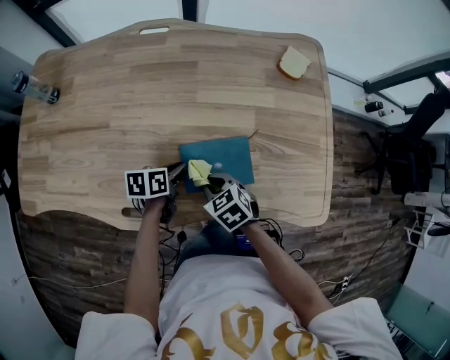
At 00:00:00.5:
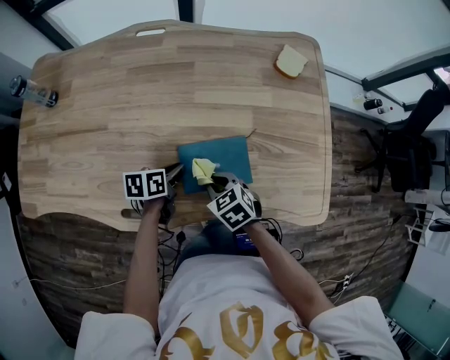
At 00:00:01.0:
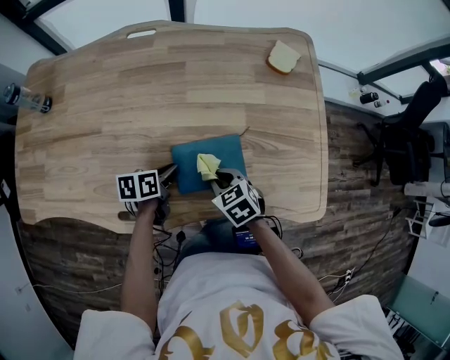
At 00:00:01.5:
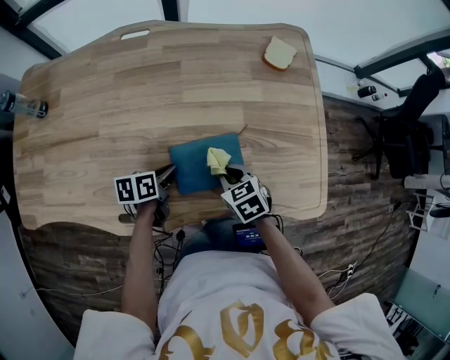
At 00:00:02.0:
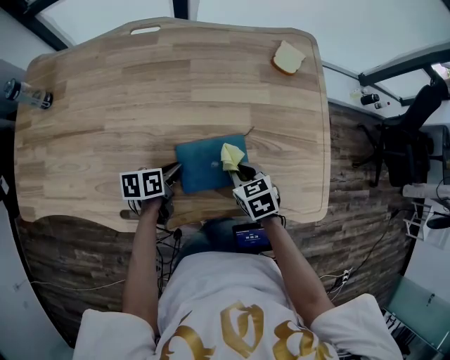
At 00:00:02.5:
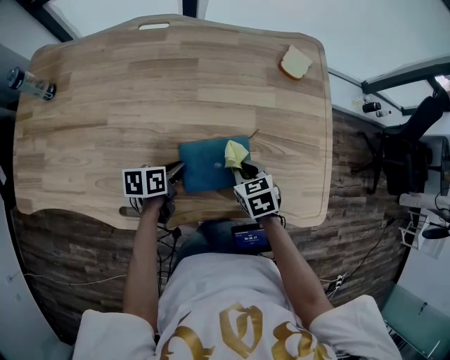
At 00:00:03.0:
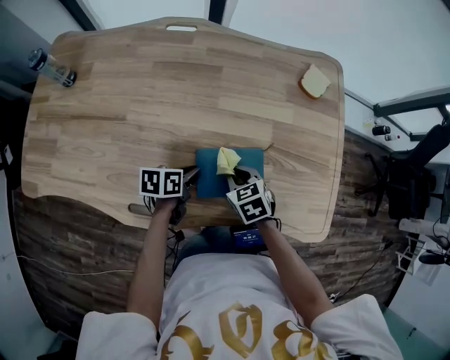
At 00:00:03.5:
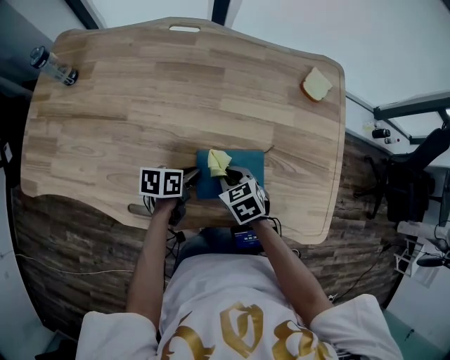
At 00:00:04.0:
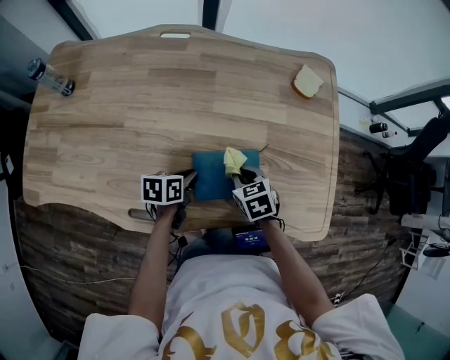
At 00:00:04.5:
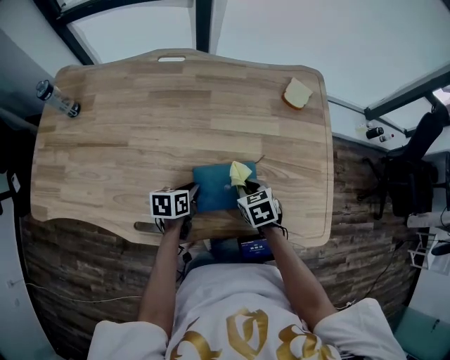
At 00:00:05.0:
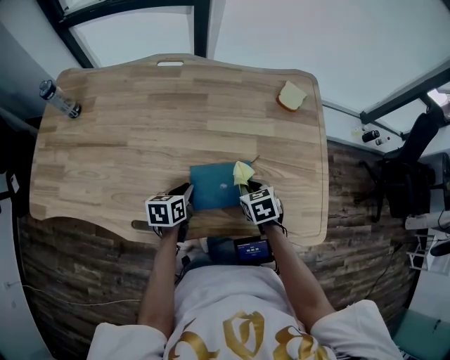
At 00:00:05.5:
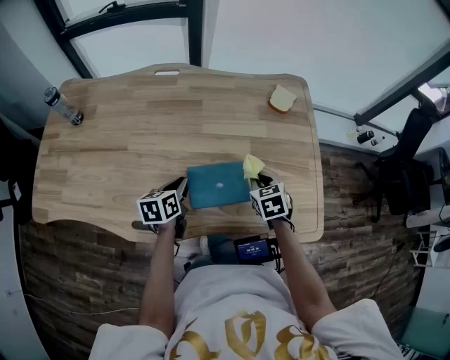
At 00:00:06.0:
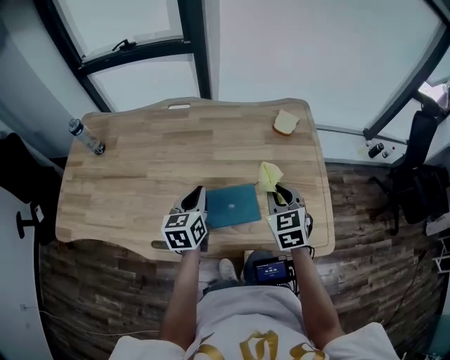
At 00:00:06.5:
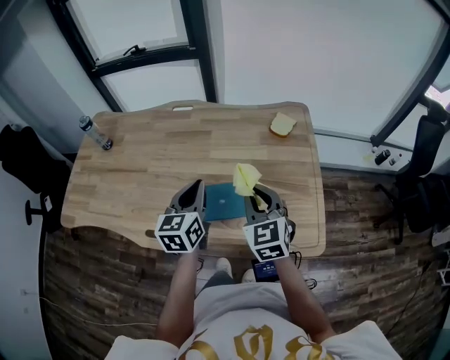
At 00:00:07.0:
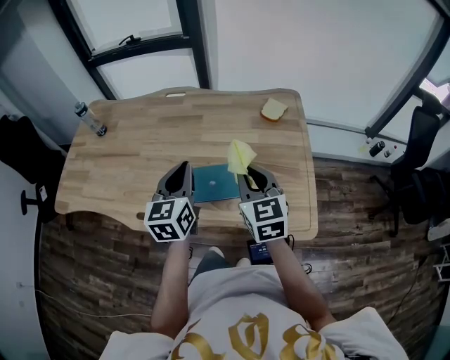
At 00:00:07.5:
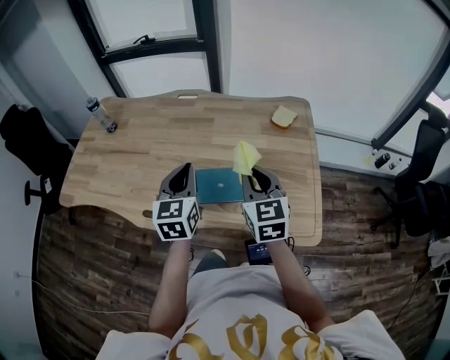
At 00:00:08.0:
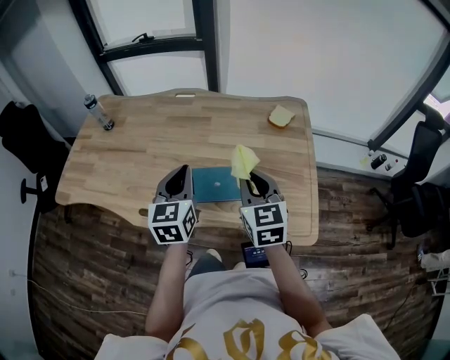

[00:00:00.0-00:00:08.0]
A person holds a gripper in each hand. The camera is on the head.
00:00:00.0 to 00:00:02.0: The right gripper travels to the right by about 10 cm.
00:00:04.0 to 00:00:06.0: The right gripper shifts approximately 20 cm upward and to the right, and rotates about 30 degrees, while the left gripper shifts approximately 20 cm upward, and swivels about 40 degrees.
00:00:06.0 to 00:00:08.0: The grippers both shift upward and backward by approximately 15 cm.

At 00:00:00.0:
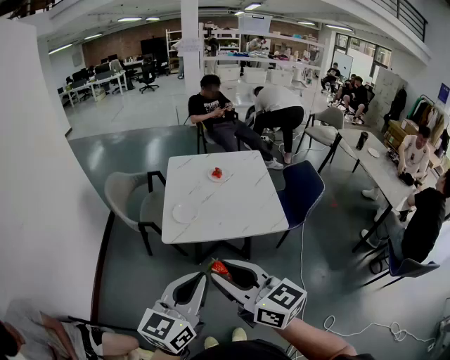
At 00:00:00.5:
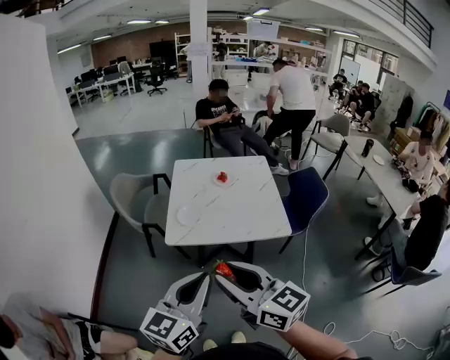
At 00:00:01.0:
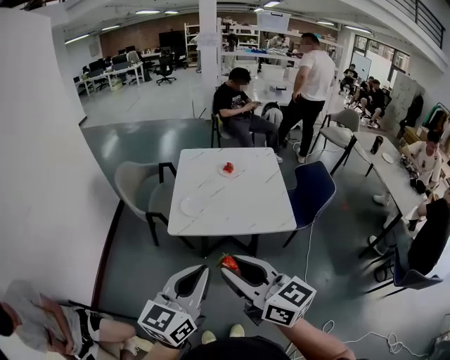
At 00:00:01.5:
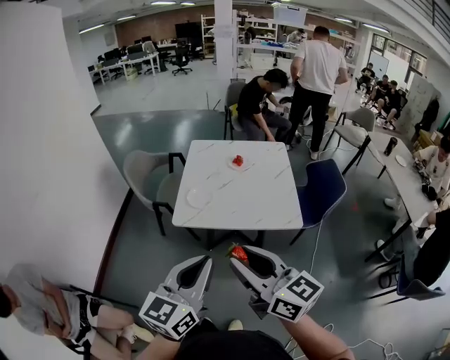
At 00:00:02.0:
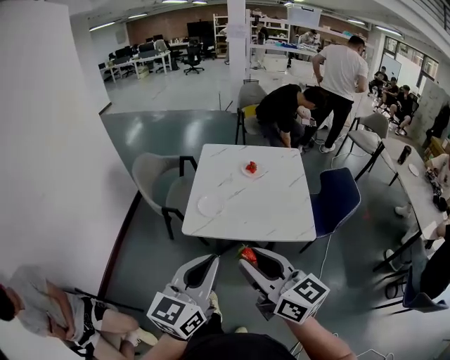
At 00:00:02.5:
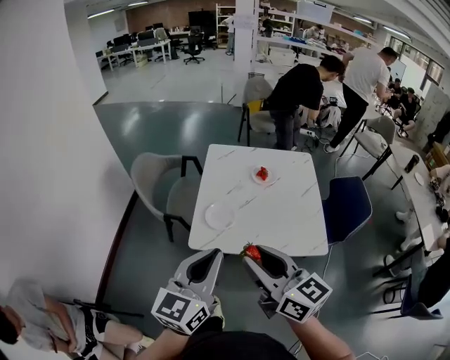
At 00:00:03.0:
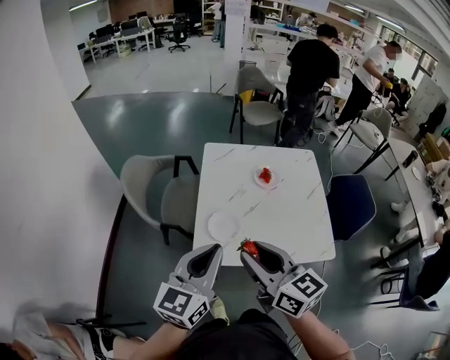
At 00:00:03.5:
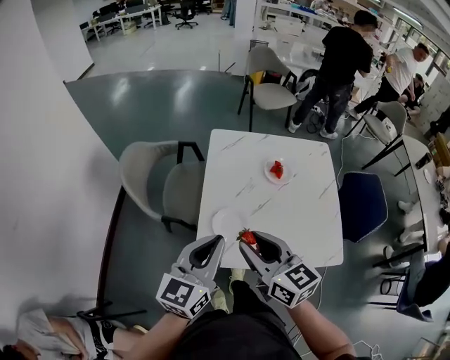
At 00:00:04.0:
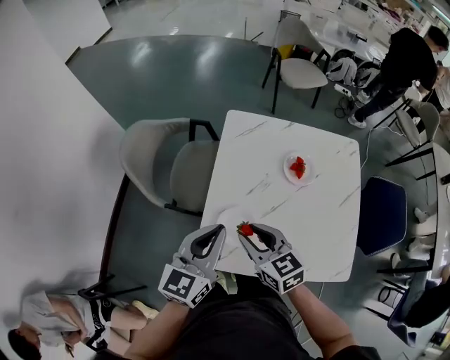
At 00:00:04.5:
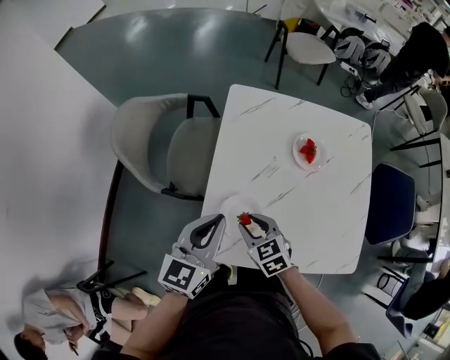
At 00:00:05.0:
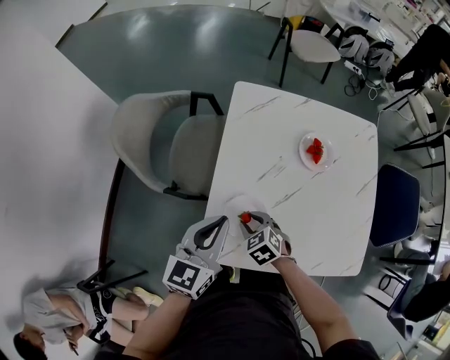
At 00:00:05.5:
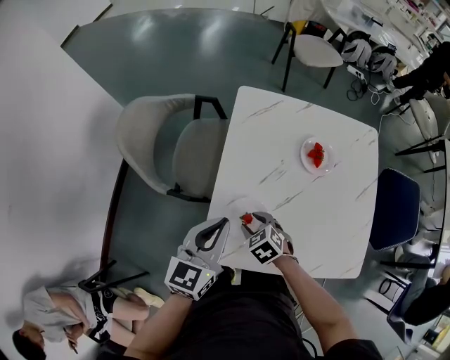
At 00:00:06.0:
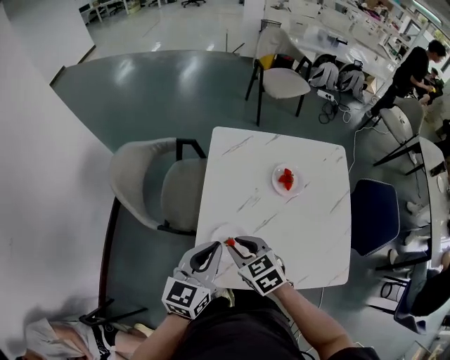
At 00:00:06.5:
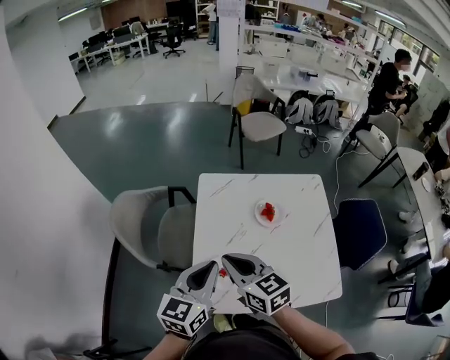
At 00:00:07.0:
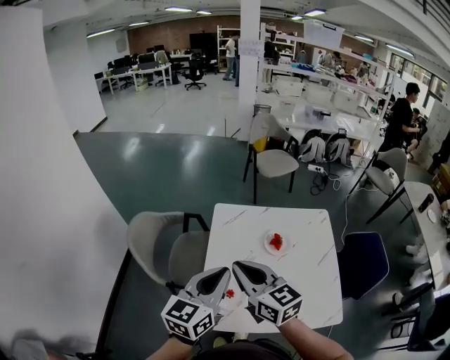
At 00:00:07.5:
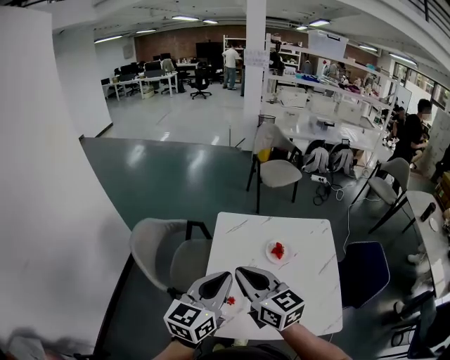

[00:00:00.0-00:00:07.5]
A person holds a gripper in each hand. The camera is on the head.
00:00:00.0 to 00:00:02.0: The right gripper heads forward and to the right, covering about 10 cm, while the left gripper travels forward by roughly 5 cm.
00:00:02.0 to 00:00:04.0: The two grippers travel together, forward, some 40 cm. The right gripper heads downward, covering roughly 25 cm, and tips its fingers downward by about 30 degrees.
00:00:04.0 to 00:00:05.5: The right gripper moves downward, approximately 20 cm, and points its fingers some 30 degrees further downward, while the left gripper moves downward, about 10 cm.
00:00:05.5 to 00:00:07.5: The left gripper shifts roughly 20 cm upward, while the right gripper moves upward, approximately 40 cm, angles its fingers upward, by approximately 50 degrees, and closes up.

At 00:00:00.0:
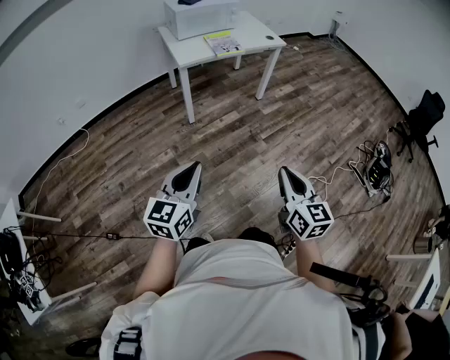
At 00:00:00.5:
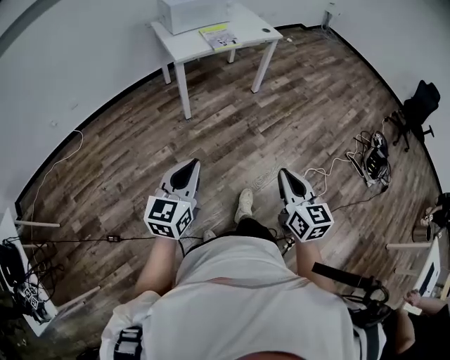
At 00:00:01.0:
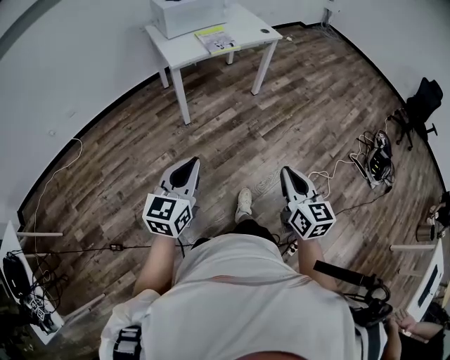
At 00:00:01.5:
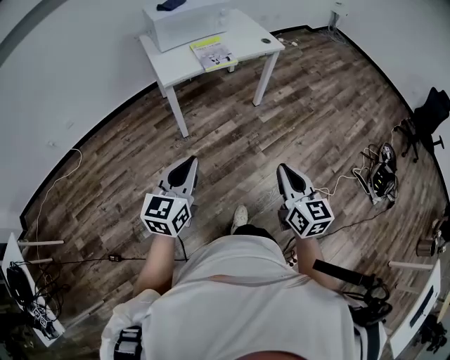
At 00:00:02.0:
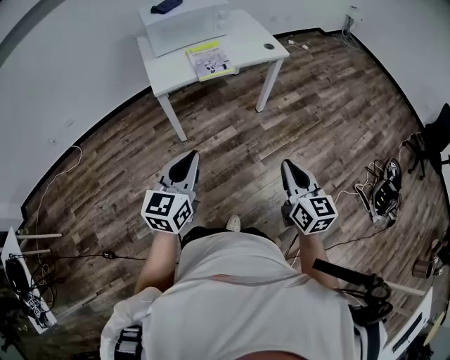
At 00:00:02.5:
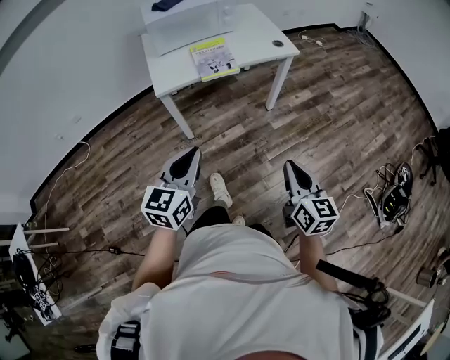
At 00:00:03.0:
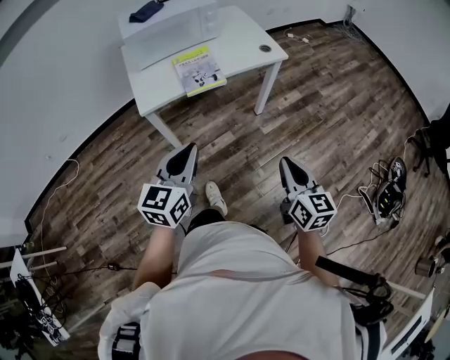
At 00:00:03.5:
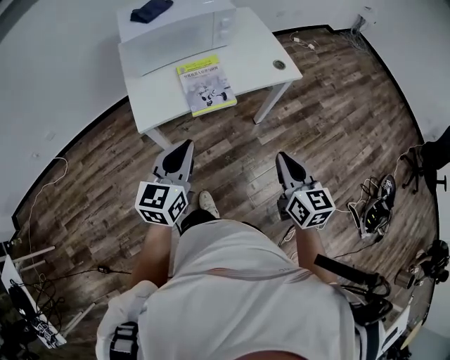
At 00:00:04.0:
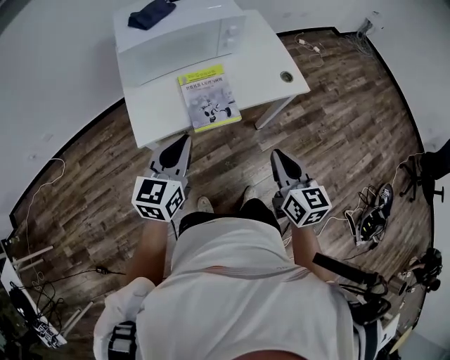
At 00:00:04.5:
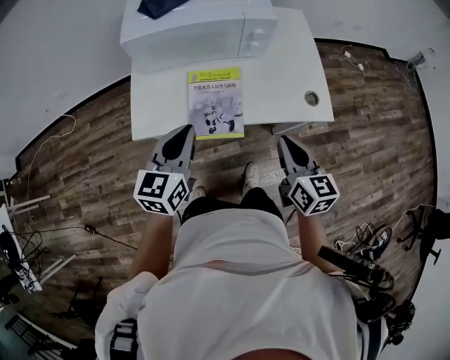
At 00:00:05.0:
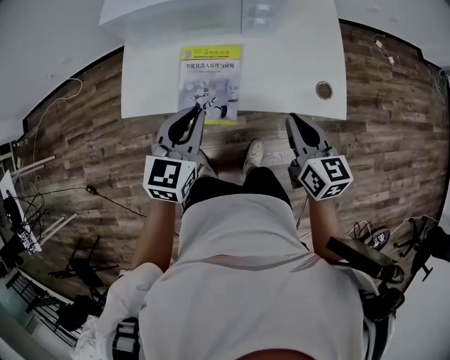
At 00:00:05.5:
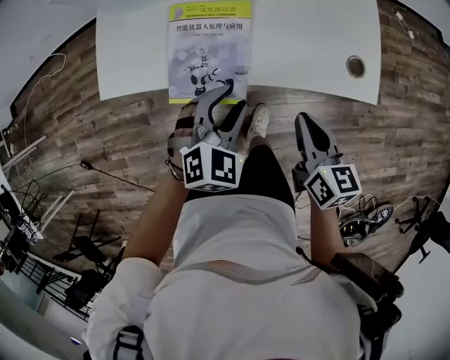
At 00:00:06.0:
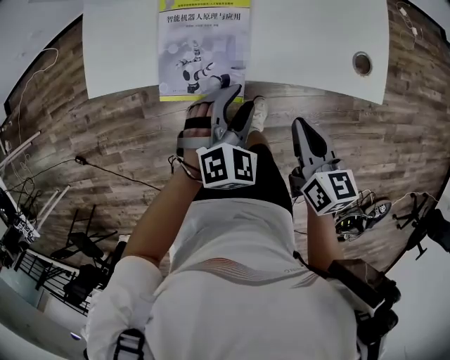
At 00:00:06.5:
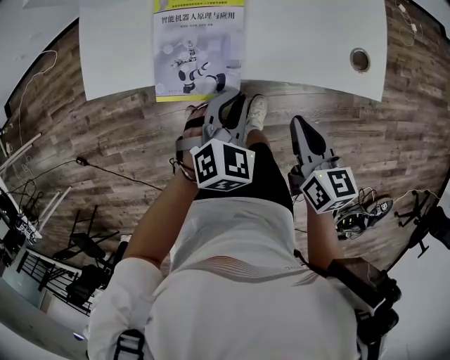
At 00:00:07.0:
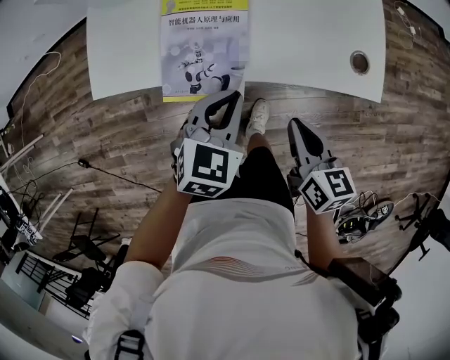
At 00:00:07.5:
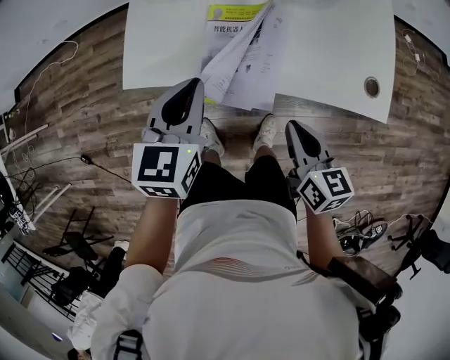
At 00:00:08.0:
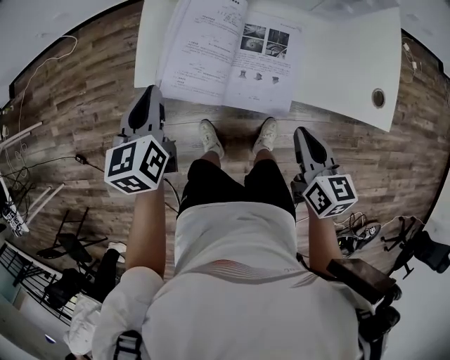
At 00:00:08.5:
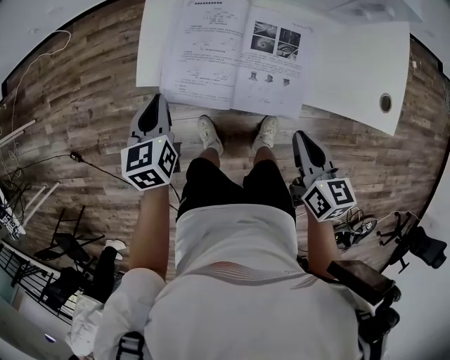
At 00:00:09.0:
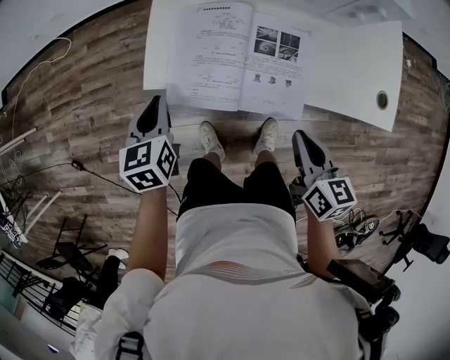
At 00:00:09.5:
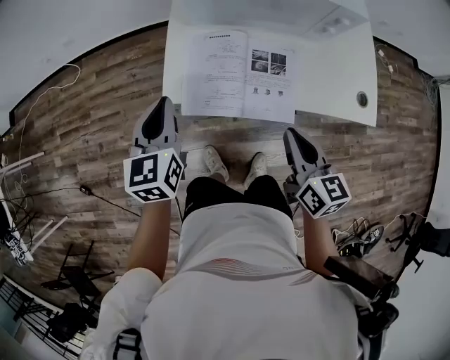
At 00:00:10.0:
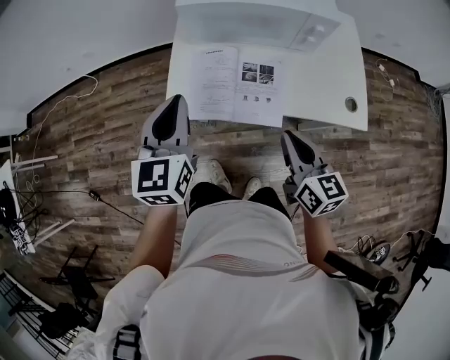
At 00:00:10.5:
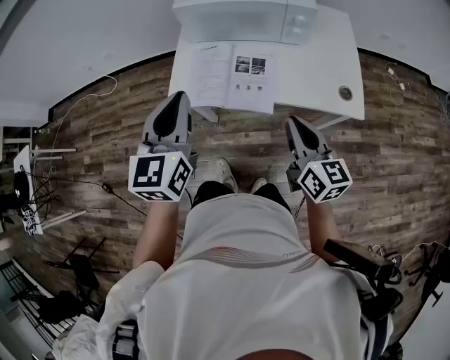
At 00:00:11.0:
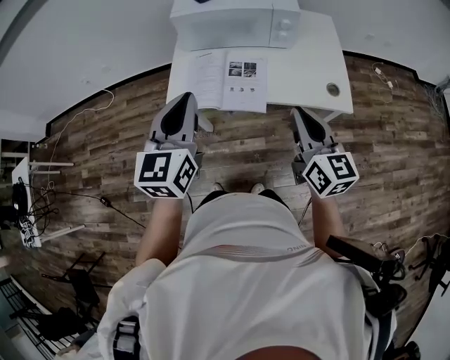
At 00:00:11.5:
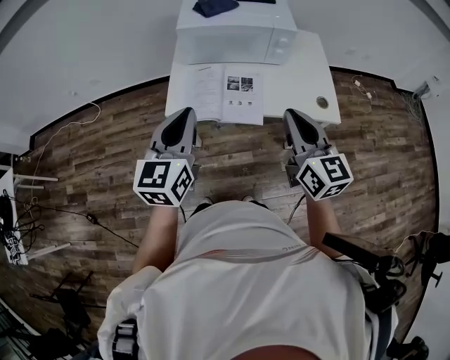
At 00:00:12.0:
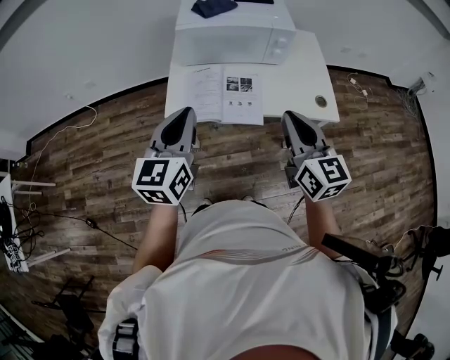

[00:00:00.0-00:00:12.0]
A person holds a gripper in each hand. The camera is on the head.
00:00:00.0 to 00:00:02.0: The grippers both shift forward by about 35 cm.
00:00:02.0 to 00:00:04.0: Both grippers are carried forward, roughly 40 cm.
00:00:04.0 to 00:00:06.0: The left gripper shifts about 35 cm downward, to the right and forward, tilts its fingers approximately 40 degrees downward, and opens its fingers. Meanwhile the right gripper is displaced downward, forward and to the right by some 30 cm, and changes its angle by approximately 30 degrees.
00:00:06.0 to 00:00:08.0: The right gripper heads to the left, covering roughly 10 cm; the left gripper shifts about 35 cm to the left, twists approximately 60 degrees counterclockwise, seen from behind, and closes its fingers.
00:00:08.0 to 00:00:10.0: Both grippers travel together upward, about 15 cm. The left gripper changes its angle by some 20 degrees.
00:00:10.0 to 00:00:12.0: The left gripper goes some 15 cm backward and upward. Meanwhile the right gripper shifts roughly 15 cm upward and backward, and turns by some 20 degrees.
